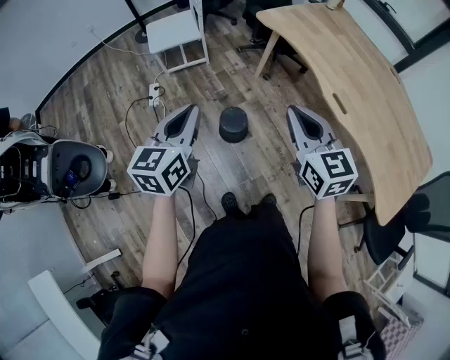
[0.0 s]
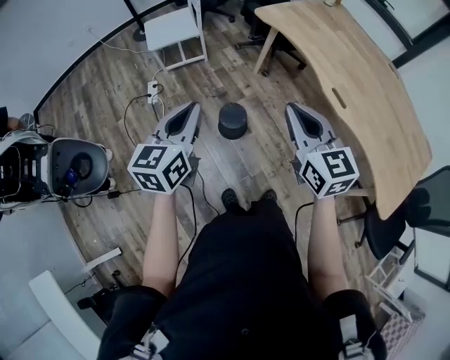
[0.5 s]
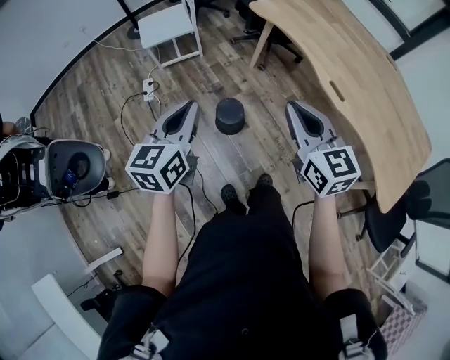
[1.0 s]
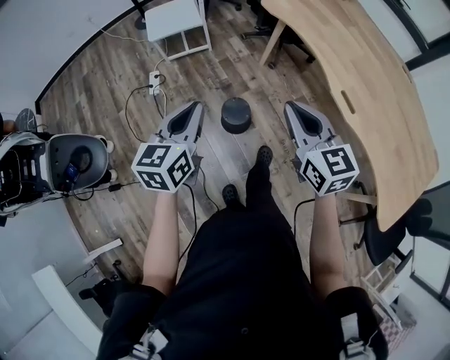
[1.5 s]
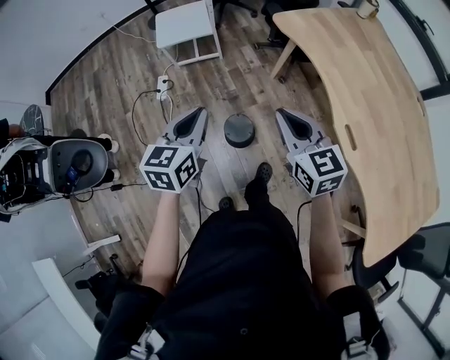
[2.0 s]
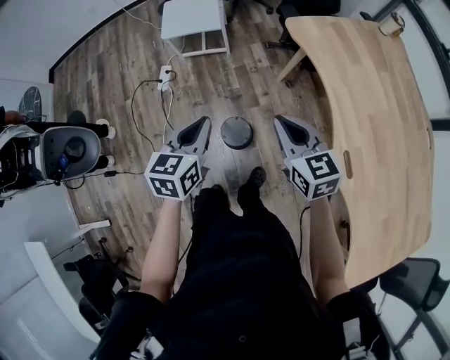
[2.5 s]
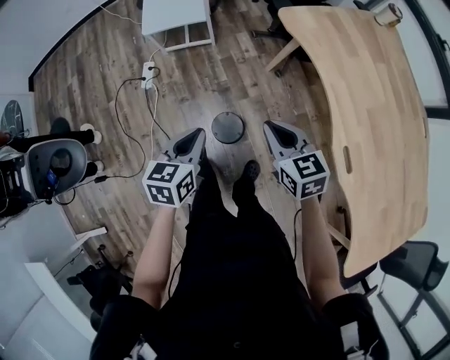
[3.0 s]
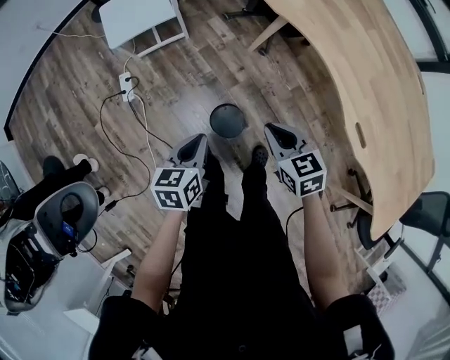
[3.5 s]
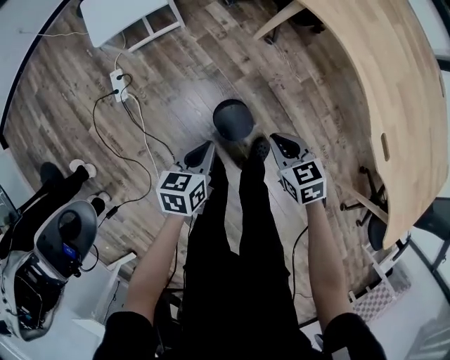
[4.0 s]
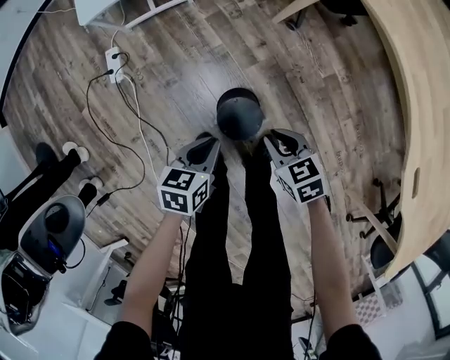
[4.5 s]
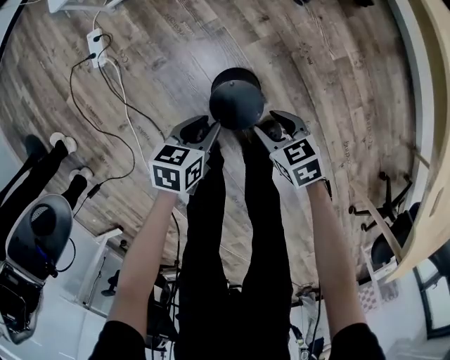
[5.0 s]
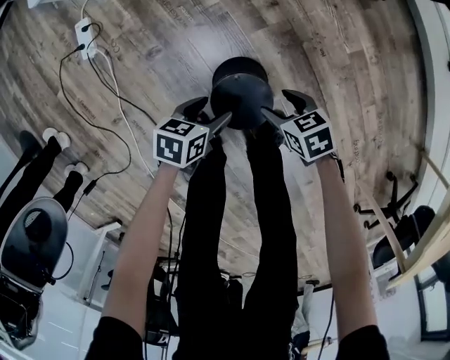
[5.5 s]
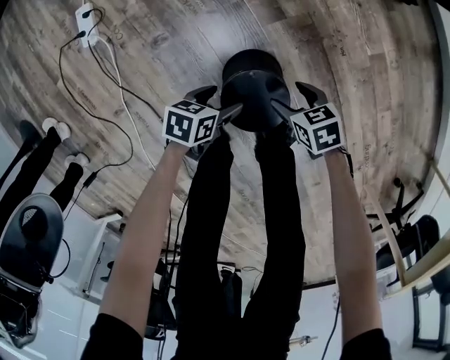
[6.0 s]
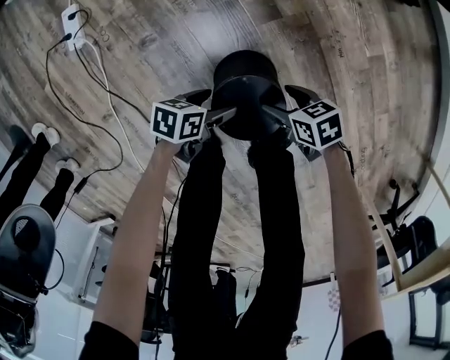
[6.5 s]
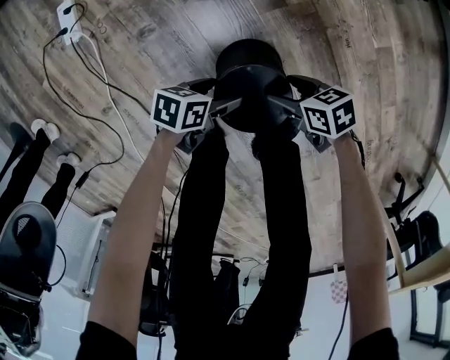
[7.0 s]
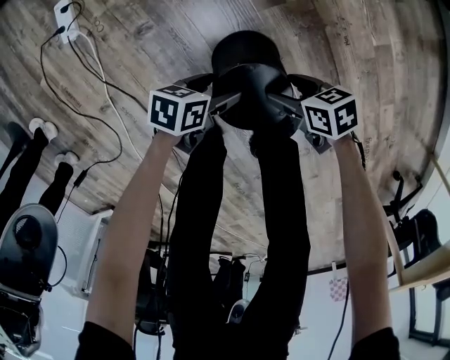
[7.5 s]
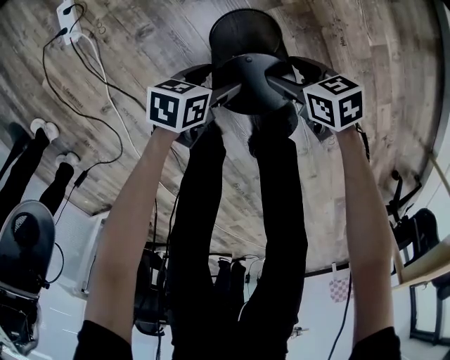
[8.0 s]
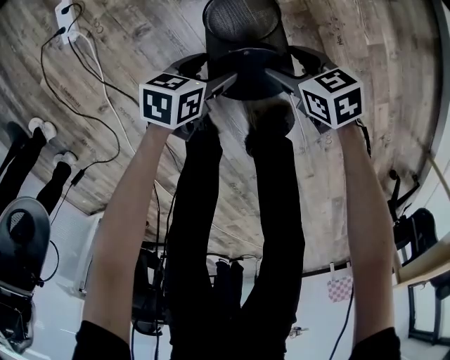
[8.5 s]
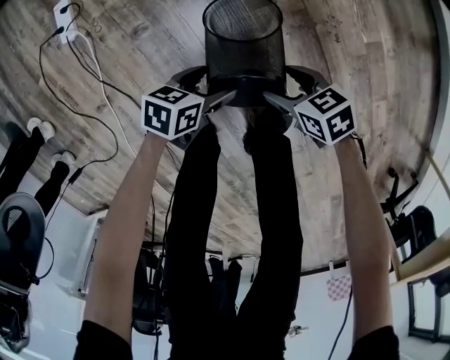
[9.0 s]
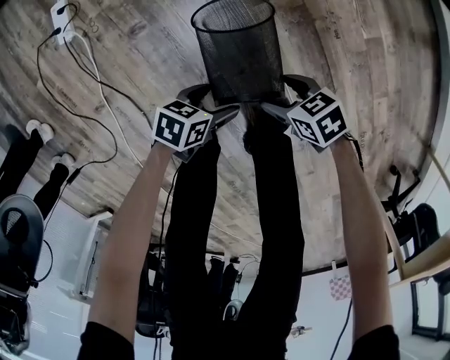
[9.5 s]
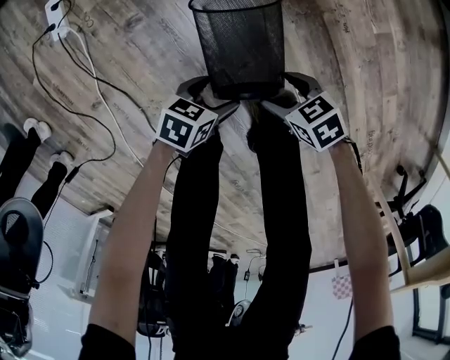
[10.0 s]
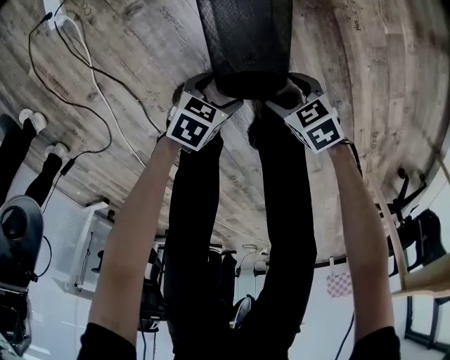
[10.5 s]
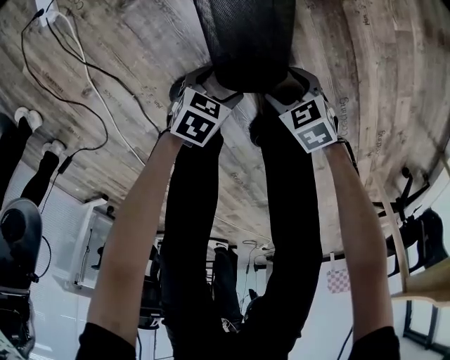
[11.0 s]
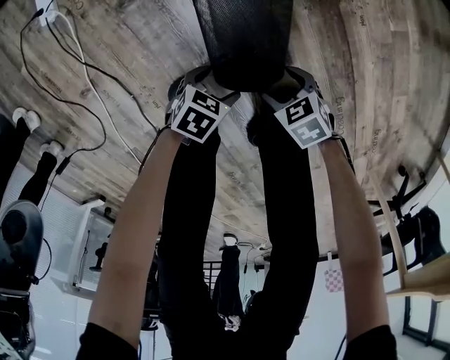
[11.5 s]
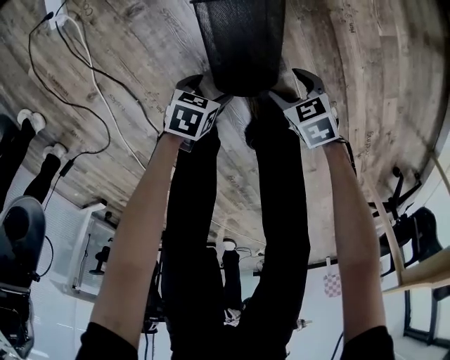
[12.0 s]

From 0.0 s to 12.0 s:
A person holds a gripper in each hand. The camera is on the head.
From 0.0 s to 2.0 s: The two grippers go some 15 cm forward and downward.
From 2.0 s to 4.0 s: The two grippers go approximately 30 cm downward. The left gripper turns by approximately 30 degrees. The right gripper angles its fingers downward, by about 30 degrees.
From 4.0 s to 6.0 s: The grippers both shift downward by roughly 40 cm. The left gripper swivels about 20 degrees, and opens up, while the right gripper turns by some 20 degrees, and opens up.
From 6.0 s to 8.0 s: The grippers move only a little.
From 8.0 s to 10.0 s: The left gripper moves roughly 10 cm. The right gripper shifts by about 10 cm.
From 10.0 s to 12.0 s: The left gripper shifts by some 5 cm.

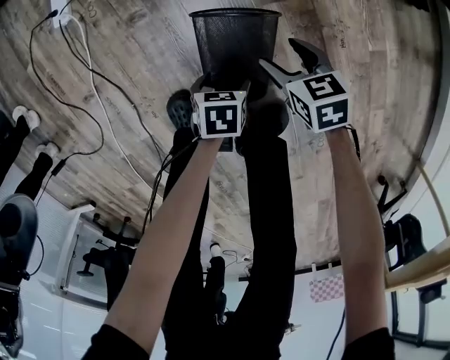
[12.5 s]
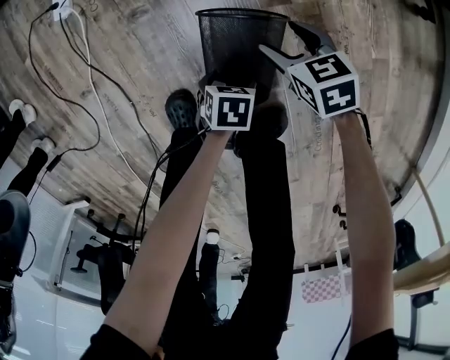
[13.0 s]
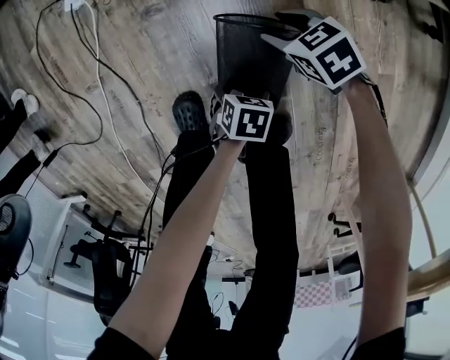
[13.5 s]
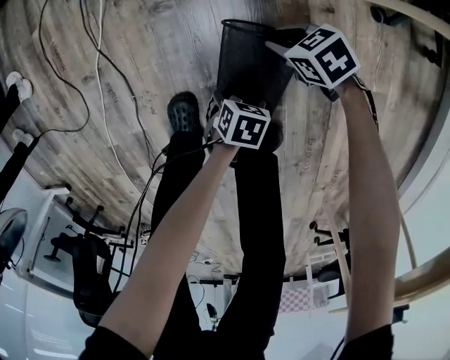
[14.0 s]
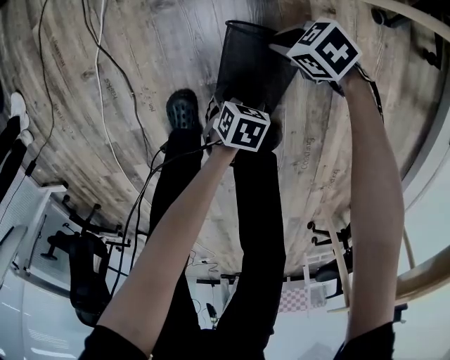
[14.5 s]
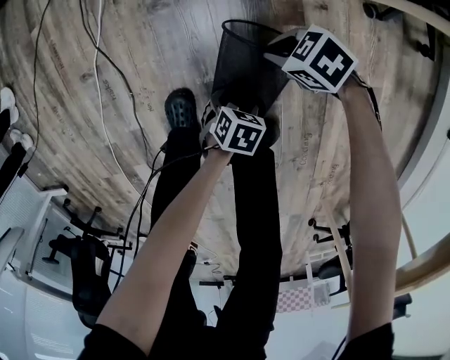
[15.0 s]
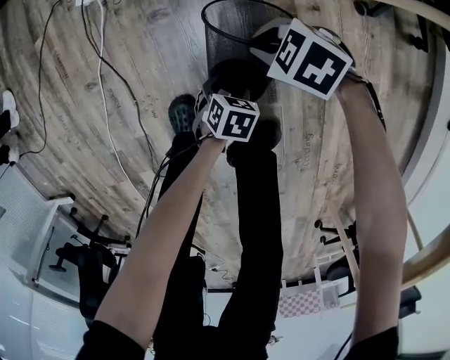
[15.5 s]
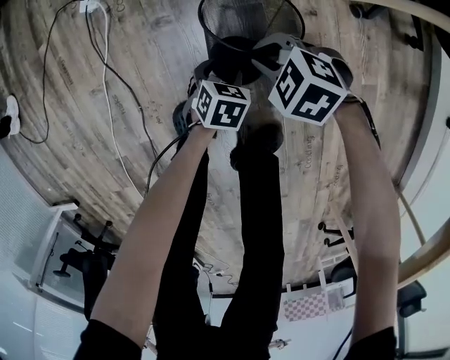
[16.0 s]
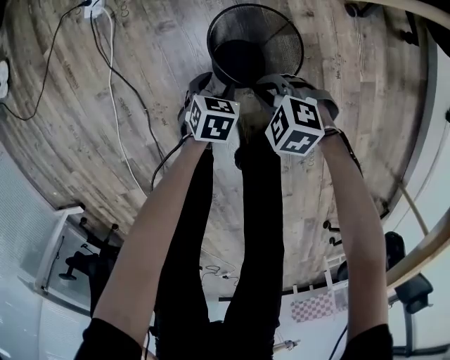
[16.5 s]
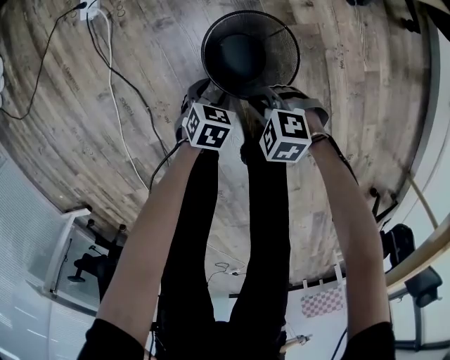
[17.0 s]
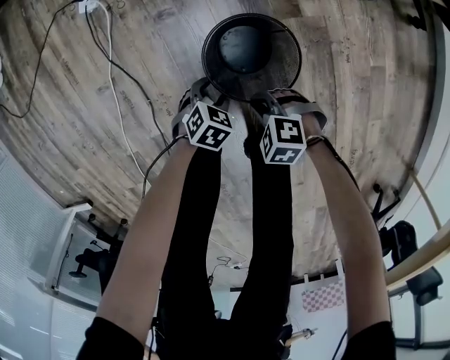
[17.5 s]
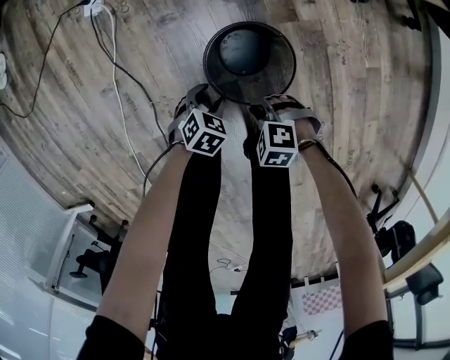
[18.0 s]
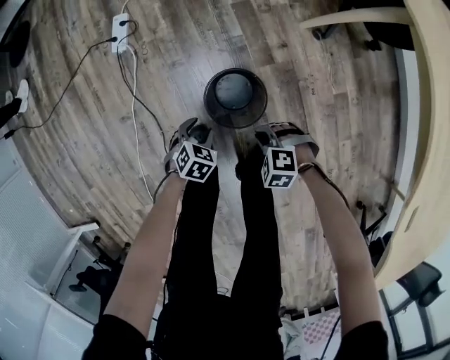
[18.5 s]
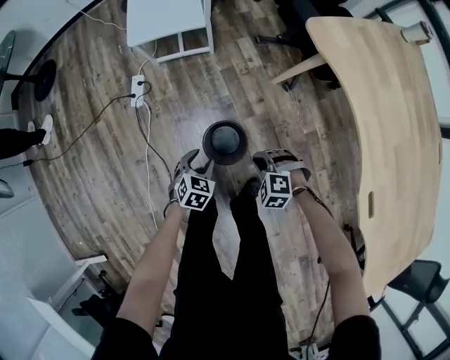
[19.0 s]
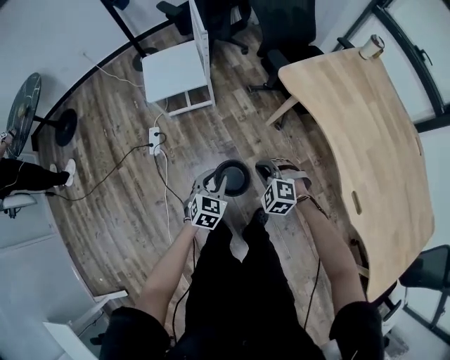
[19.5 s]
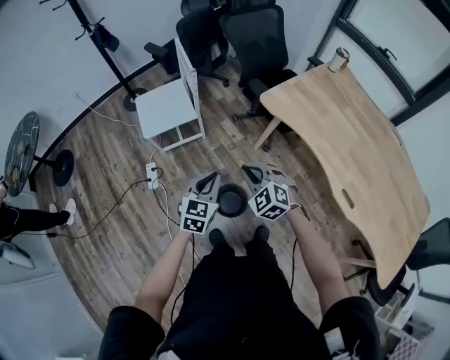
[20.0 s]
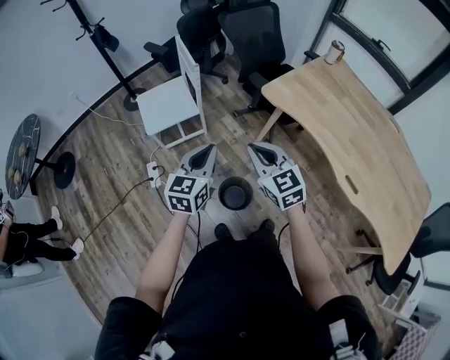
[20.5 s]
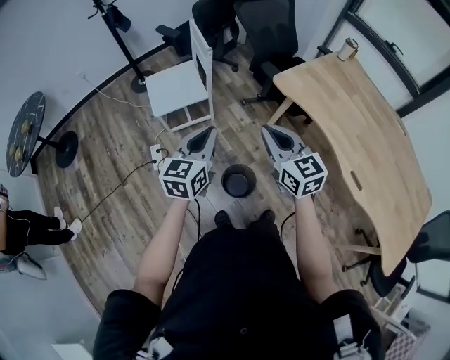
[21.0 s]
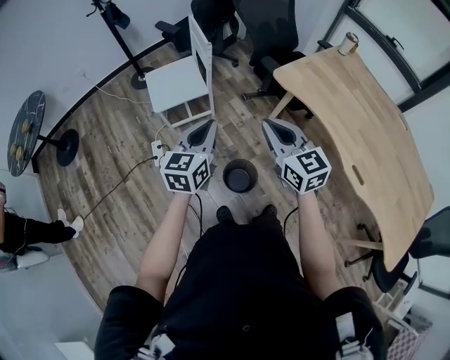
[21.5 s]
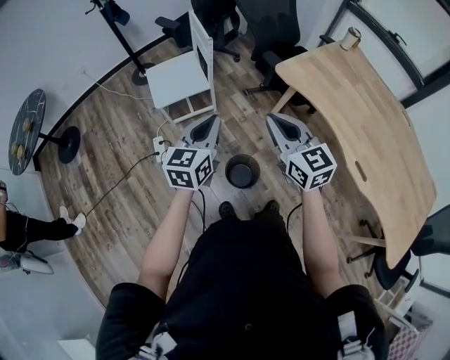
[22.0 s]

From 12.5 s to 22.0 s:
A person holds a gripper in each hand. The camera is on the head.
From 12.5 s to 14.5 s: The right gripper shifts by some 10 cm, rotates some 50 degrees, and closes.
From 14.5 s to 16.5 s: The left gripper moves about 10 cm, and closes, while the right gripper shifts by some 15 cm, and turns by about 30 degrees.
From 16.5 s to 18.0 s: The right gripper shifts by some 10 cm; the left gripper changes place by about 10 cm, and rotates about 20 degrees.
From 18.0 s to 20.0 s: The grippers both shift upward by some 70 cm. The right gripper tilts its fingers roughly 30 degrees upward, while the left gripper points its fingers approximately 50 degrees further upward, and closes its fingers.
From 20.0 s to 22.0 s: Both grippers travel together upward, some 15 cm. The right gripper changes its angle by some 50 degrees.

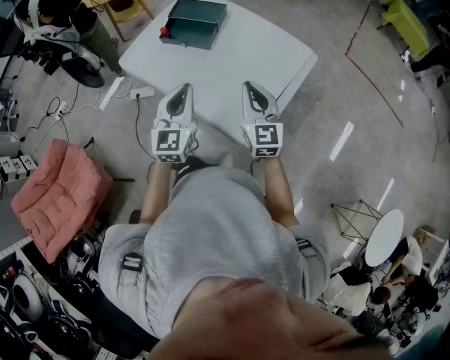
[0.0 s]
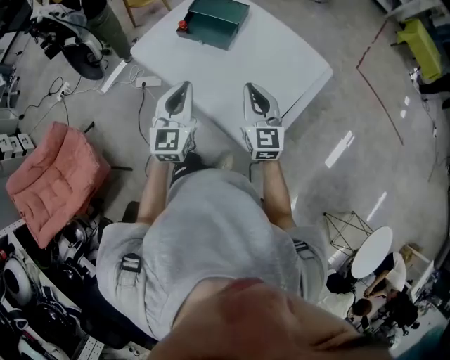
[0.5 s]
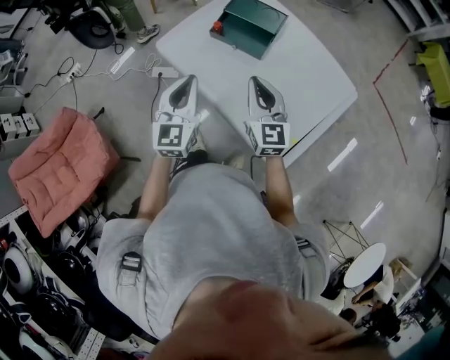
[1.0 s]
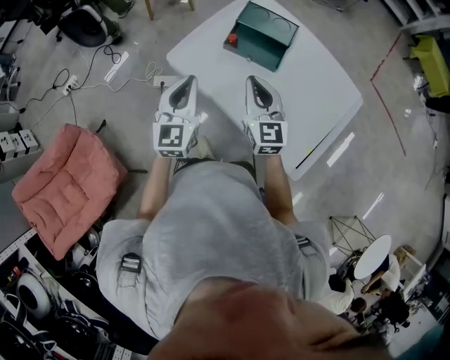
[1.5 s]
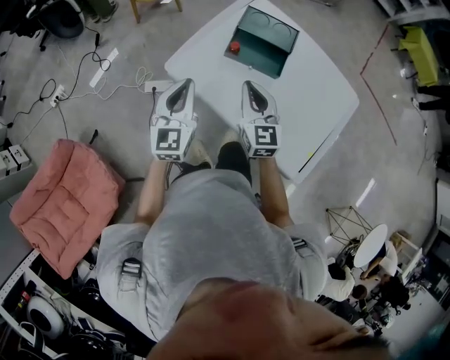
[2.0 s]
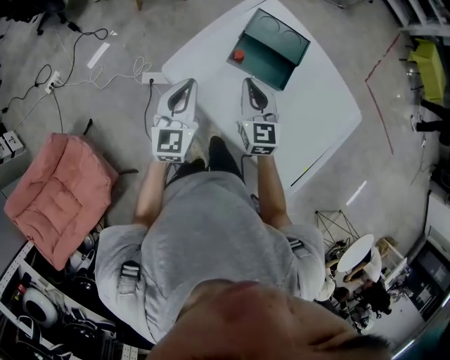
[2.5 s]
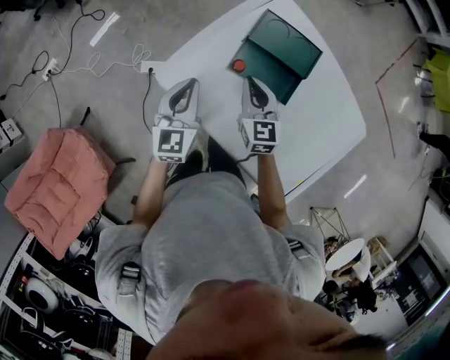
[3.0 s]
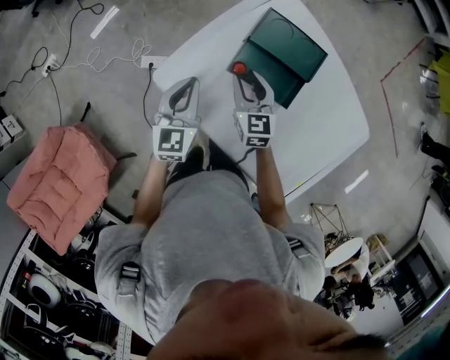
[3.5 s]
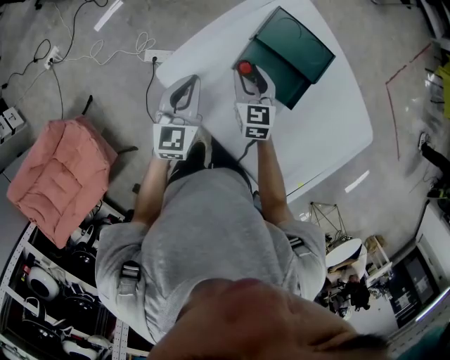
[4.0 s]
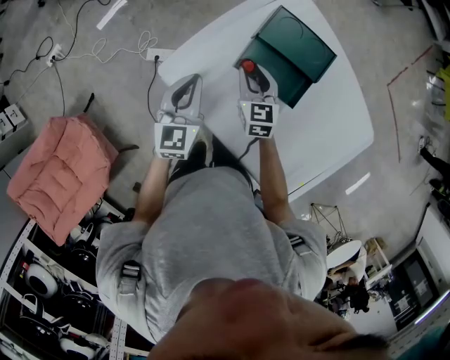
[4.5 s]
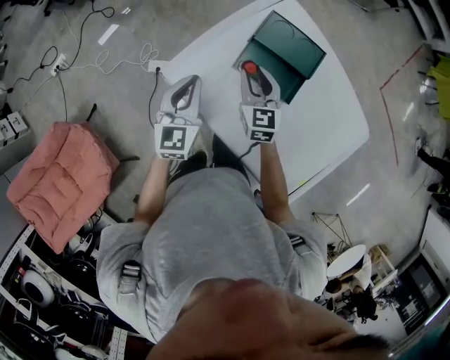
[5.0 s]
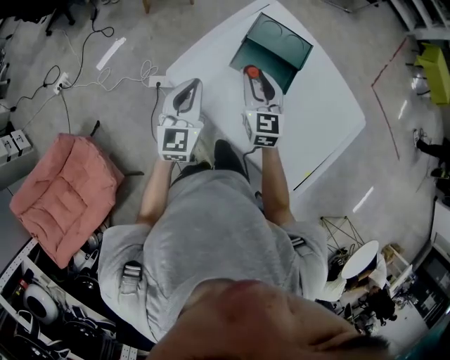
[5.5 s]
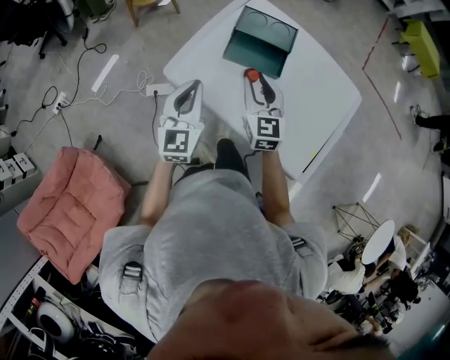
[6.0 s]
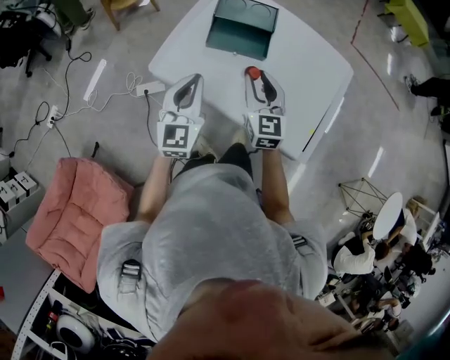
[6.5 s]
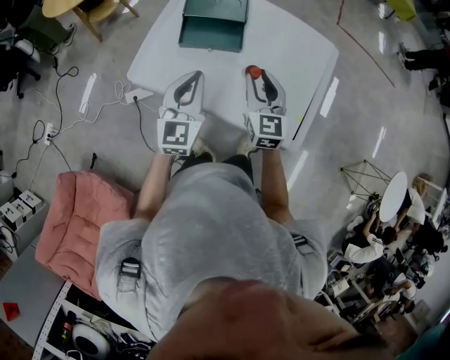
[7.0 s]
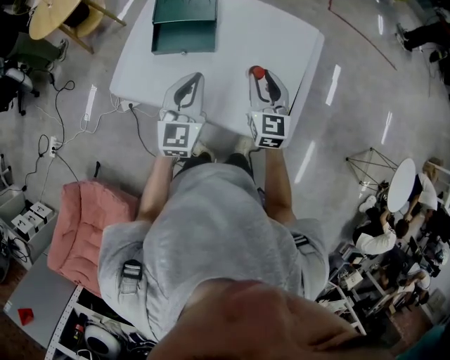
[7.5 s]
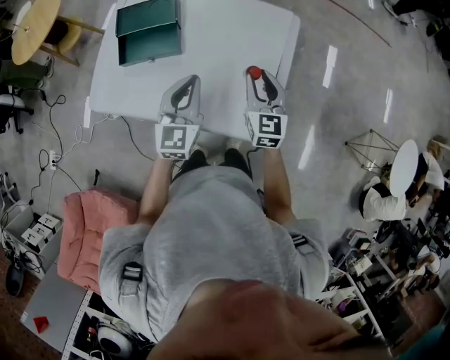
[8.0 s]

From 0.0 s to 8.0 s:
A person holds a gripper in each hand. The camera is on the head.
From 0.0 s to 2.0 s: The two grippers go approximately 35 cm to the left and forward.
From 2.0 s to 4.0 s: The two grippers go approximately 20 cm forward and downward. The right gripper swivels roughly 20 degrees, and opens up.
From 4.0 s to 6.0 s: The right gripper moves upward and backward, roughly 20 cm, and rotates approximately 20 degrees. The left gripper goes approximately 20 cm backward and upward.
From 6.0 s to 8.0 s: The two grippers go about 35 cm to the right. The left gripper swivels roughly 20 degrees, while the right gripper turns by approximately 30 degrees.
